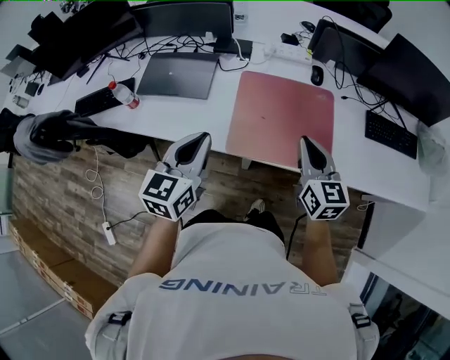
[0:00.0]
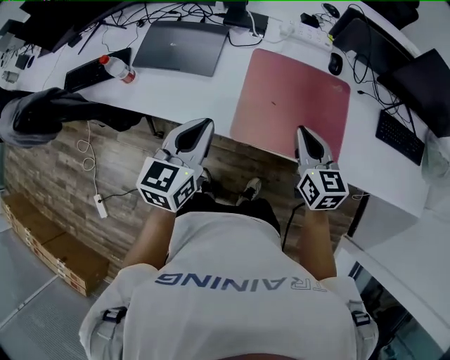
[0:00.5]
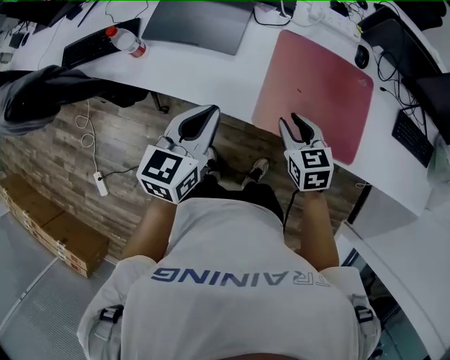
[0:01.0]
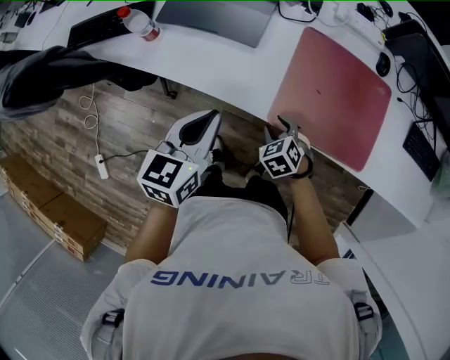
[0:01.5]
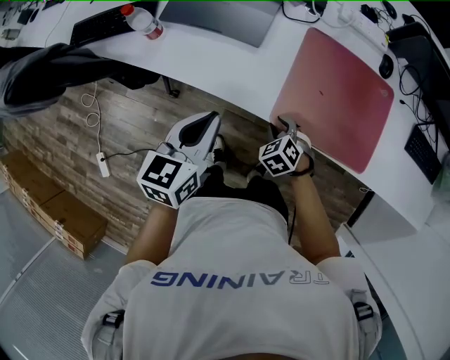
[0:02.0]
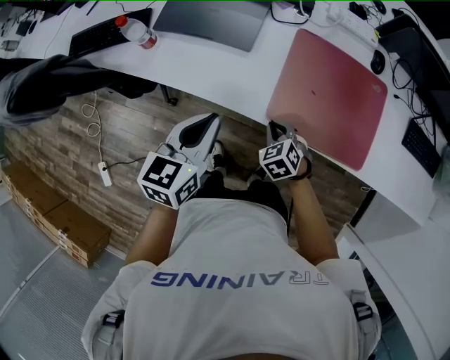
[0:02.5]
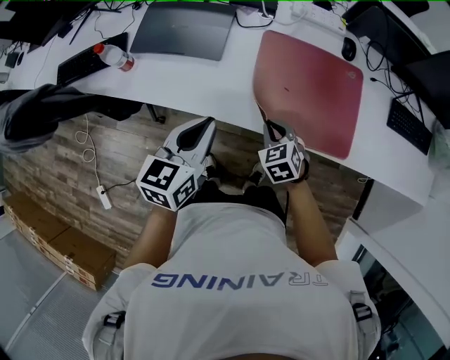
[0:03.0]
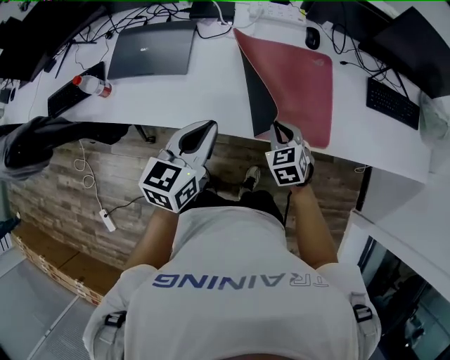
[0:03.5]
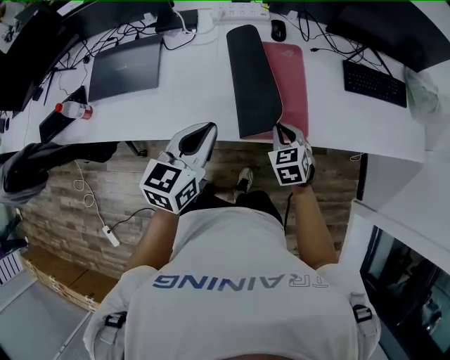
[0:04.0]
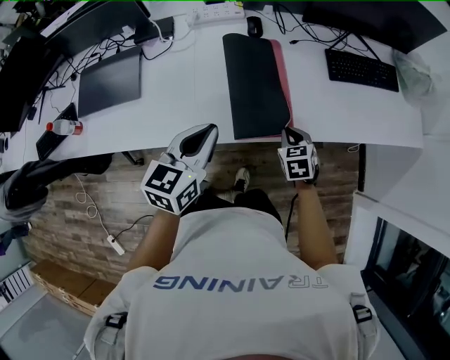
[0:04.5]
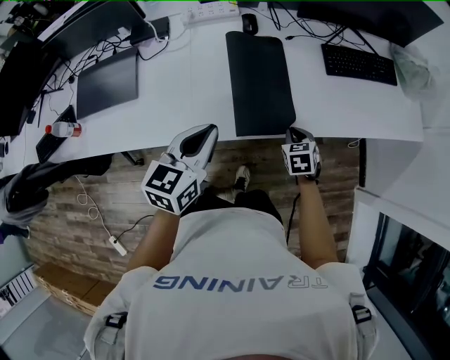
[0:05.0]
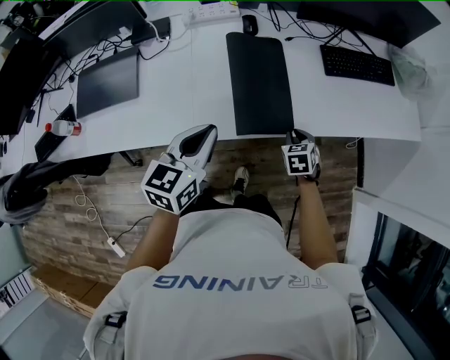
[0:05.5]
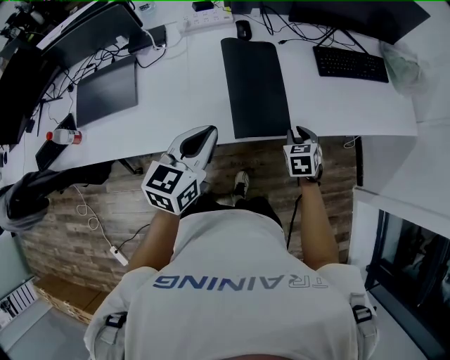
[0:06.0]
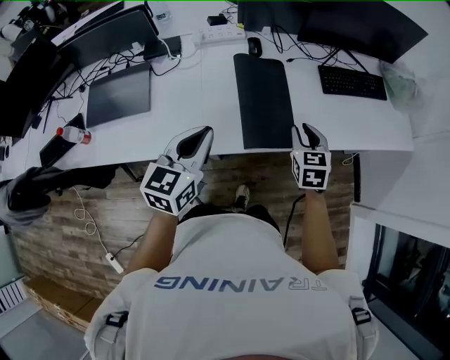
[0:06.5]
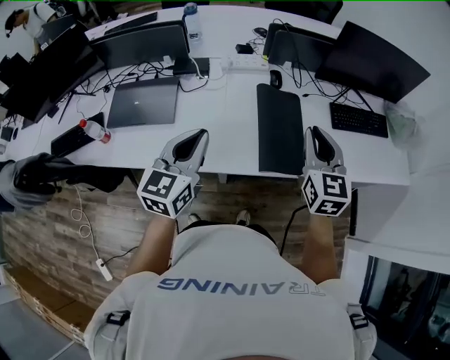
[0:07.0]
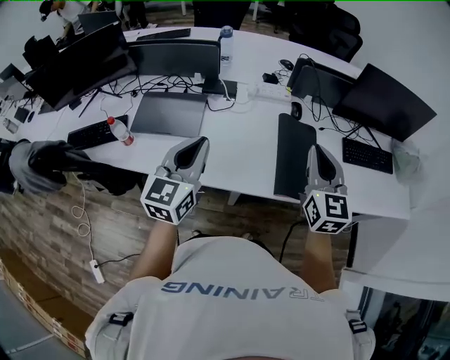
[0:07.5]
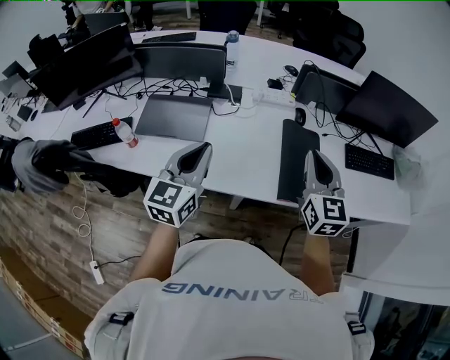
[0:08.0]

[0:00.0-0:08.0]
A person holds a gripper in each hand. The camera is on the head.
0:00.0 to 0:02.0: The right gripper is displaced downward and to the left by about 35 cm, angles its fingers downward, by some 50 degrees, and opens; the left gripper moves to the left and downward, about 15 cm.
0:02.0 to 0:04.0: Both grippers move to the right, some 25 cm. The right gripper rotates roughly 40 degrees, and closes. Meanwhile the left gripper turns by approximately 20 degrees.
0:04.0 to 0:06.0: The right gripper heads to the right, covering about 15 cm. Meanwhile the left gripper goes roughly 10 cm to the right.
0:06.0 to 0:08.0: The right gripper shifts some 40 cm upward and to the left, and points its fingers about 40 degrees further upward. The left gripper is displaced to the left and upward by approximately 25 cm, and rotates approximately 30 degrees.

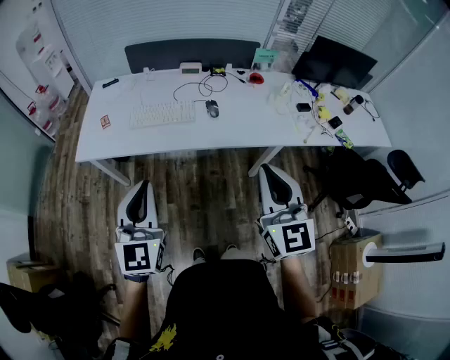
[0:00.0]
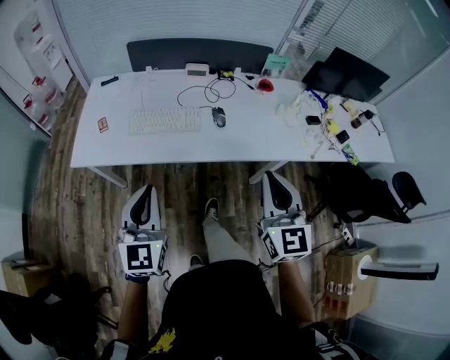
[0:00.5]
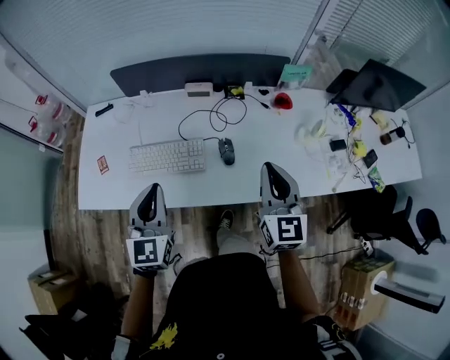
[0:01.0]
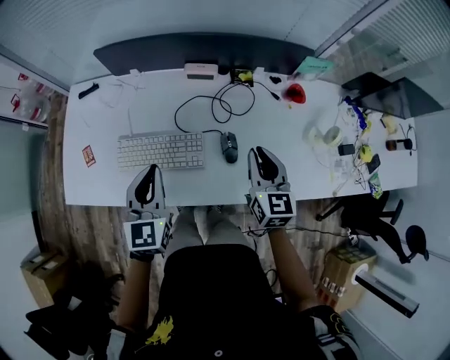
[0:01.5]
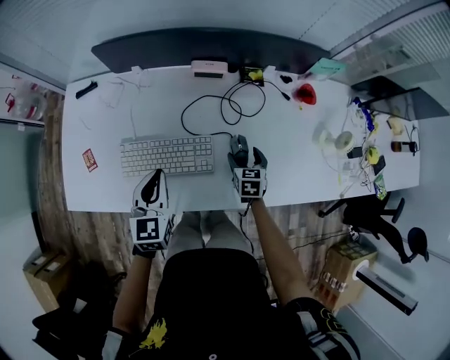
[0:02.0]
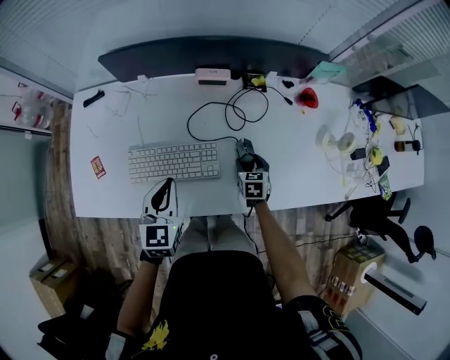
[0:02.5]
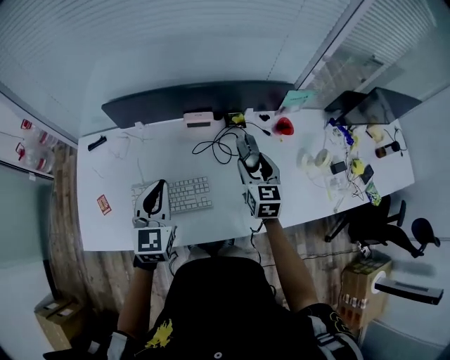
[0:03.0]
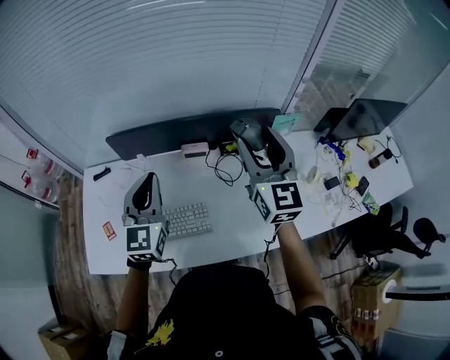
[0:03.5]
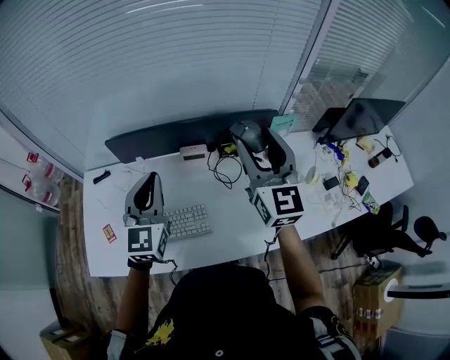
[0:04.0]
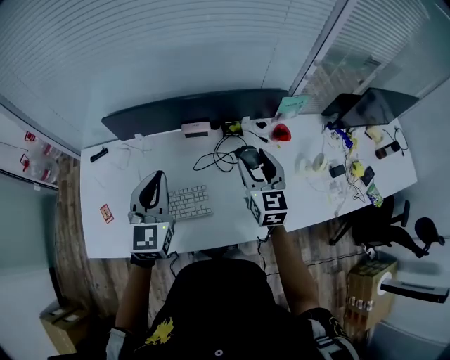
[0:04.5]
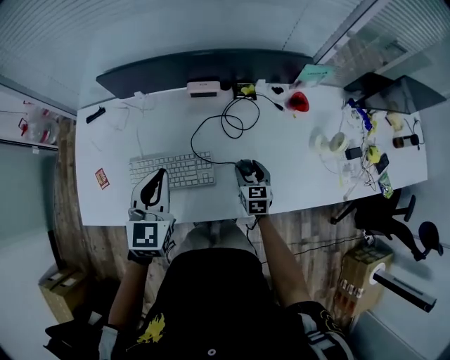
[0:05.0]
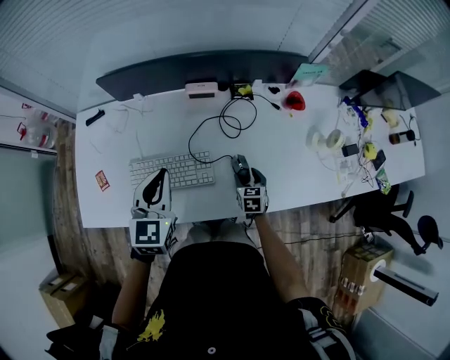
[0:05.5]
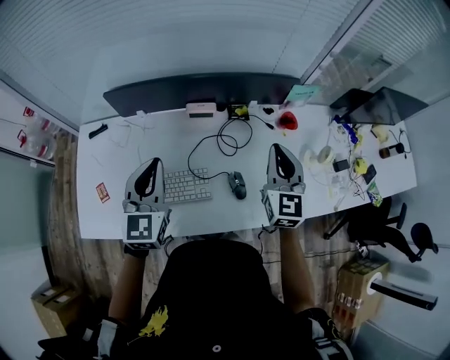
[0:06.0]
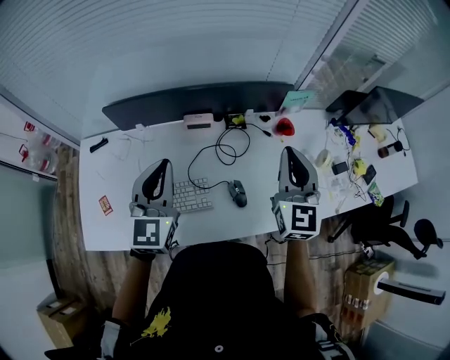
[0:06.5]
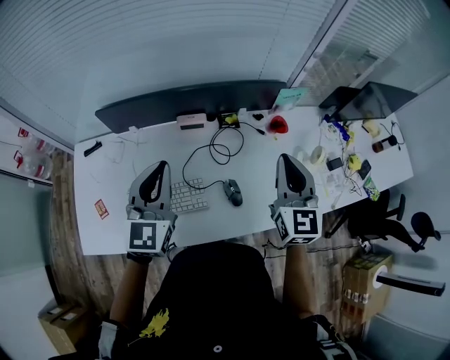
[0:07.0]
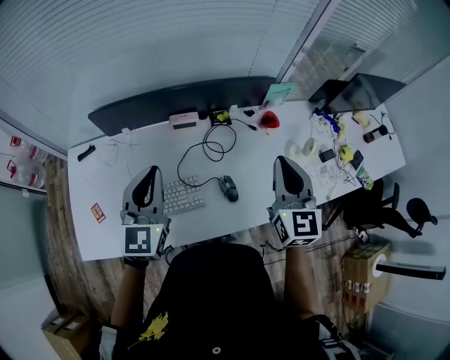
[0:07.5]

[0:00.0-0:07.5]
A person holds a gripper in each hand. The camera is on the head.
0:00.0 to 0:02.0: Both grippers are carried forward, some 60 cm. The left gripper shifts some 25 cm downward, and changes its angle by about 30 degrees, while the right gripper shifts some 50 cm downward, tips its fingers downward by approximately 50 degrees, and opens.
0:02.0 to 0:04.0: The left gripper heads upward, covering roughly 25 cm, and turns by roughly 30 degrees; the right gripper heads upward, covering approximately 50 cm, and points its fingers some 50 degrees further upward.
0:04.0 to 0:05.5: The right gripper moves downward, approximately 50 cm, and tips its fingers downward by about 50 degrees; the left gripper heads downward, covering some 15 cm, and turns by some 20 degrees.
0:05.5 to 0:07.5: The right gripper heads upward, covering roughly 40 cm, tilts its fingers roughly 40 degrees upward, and closes its fingers. The left gripper travels upward by about 10 cm.

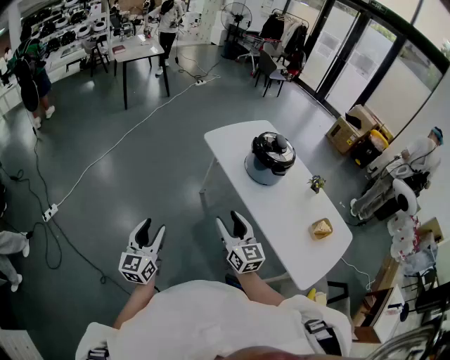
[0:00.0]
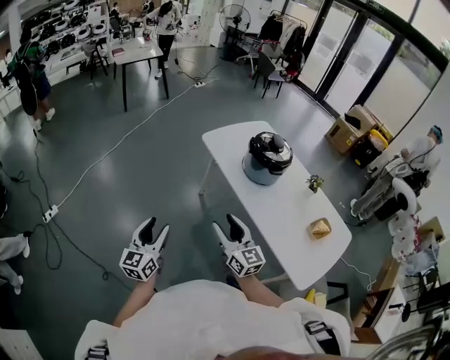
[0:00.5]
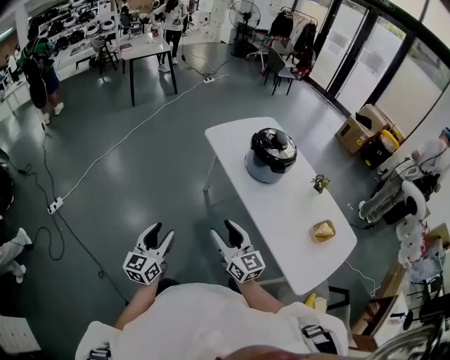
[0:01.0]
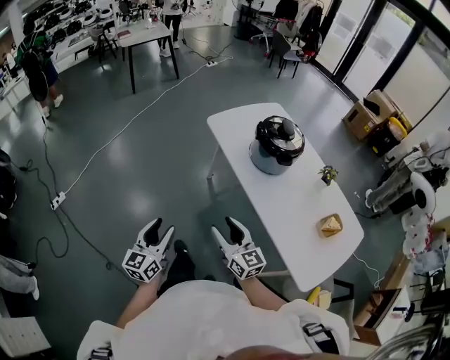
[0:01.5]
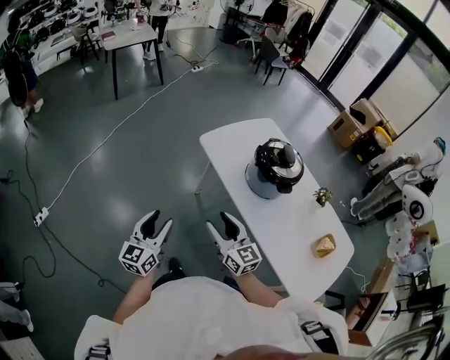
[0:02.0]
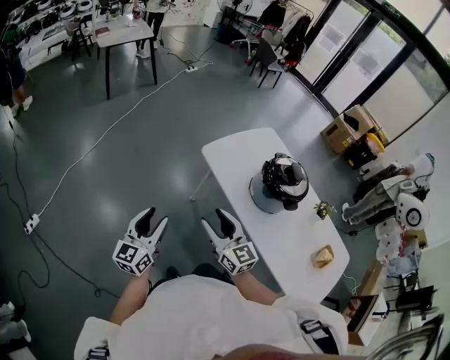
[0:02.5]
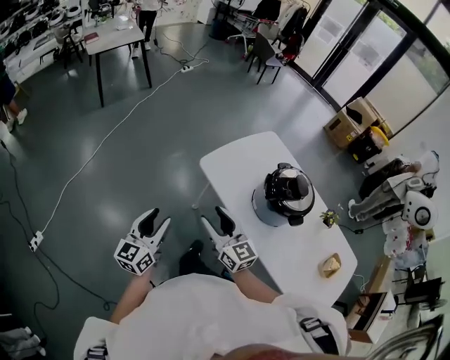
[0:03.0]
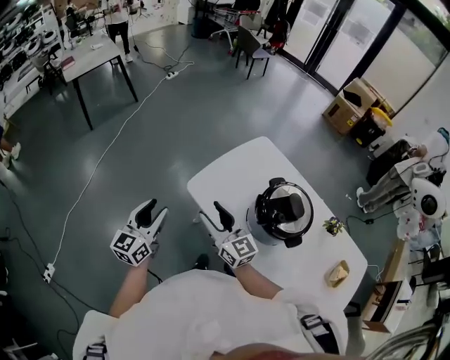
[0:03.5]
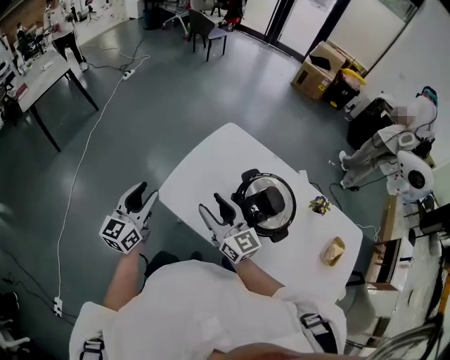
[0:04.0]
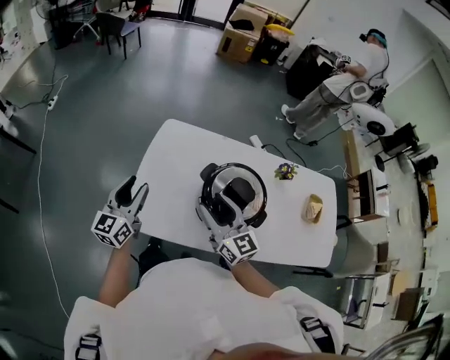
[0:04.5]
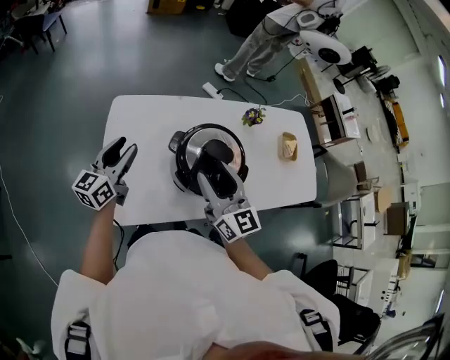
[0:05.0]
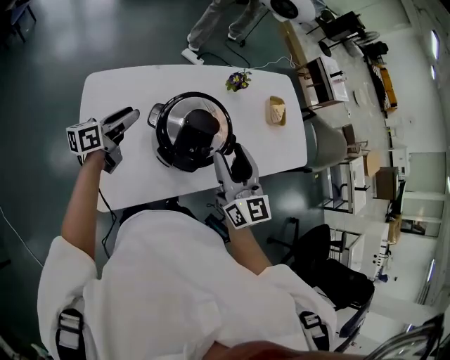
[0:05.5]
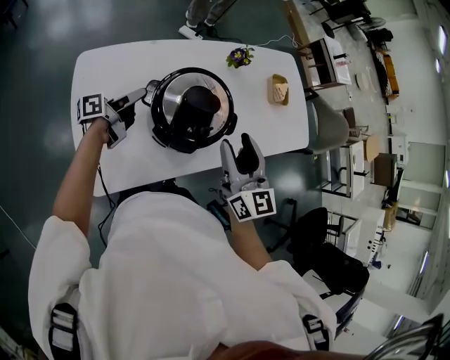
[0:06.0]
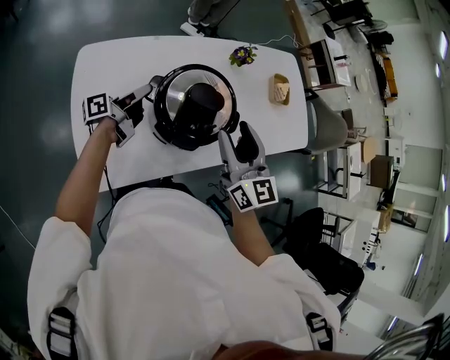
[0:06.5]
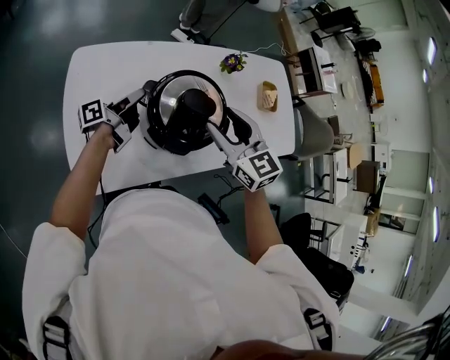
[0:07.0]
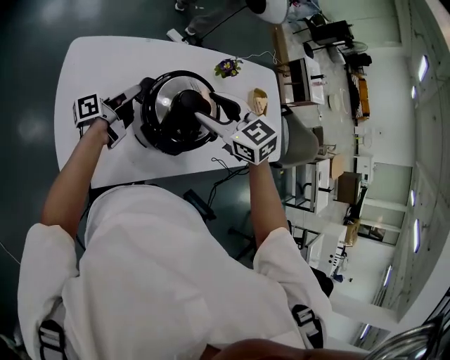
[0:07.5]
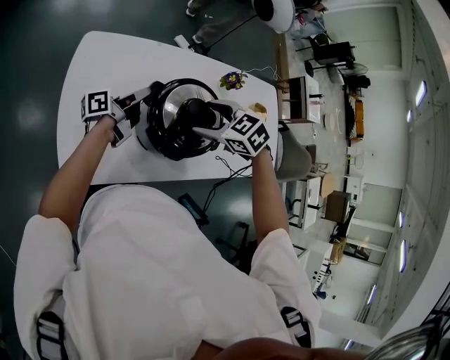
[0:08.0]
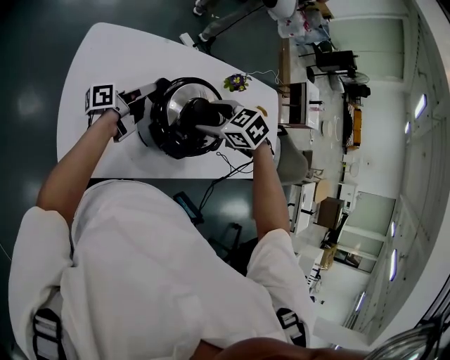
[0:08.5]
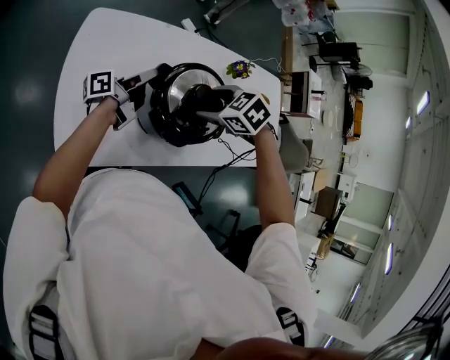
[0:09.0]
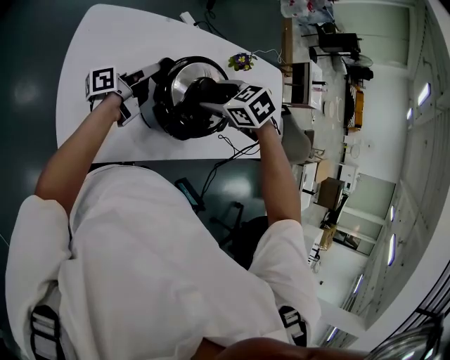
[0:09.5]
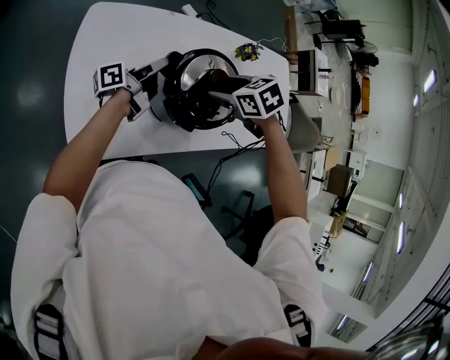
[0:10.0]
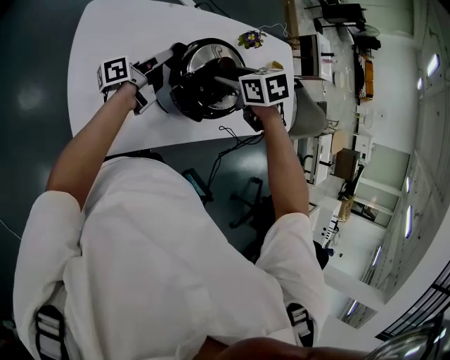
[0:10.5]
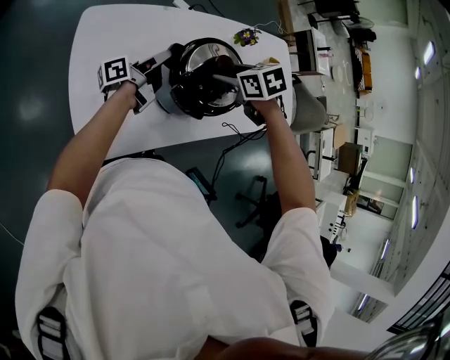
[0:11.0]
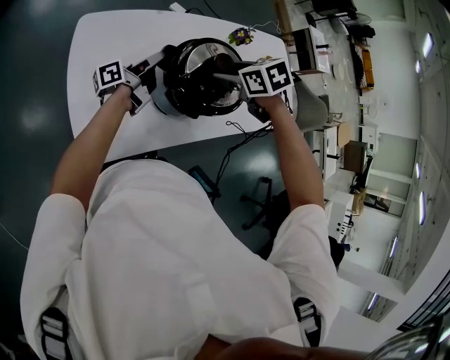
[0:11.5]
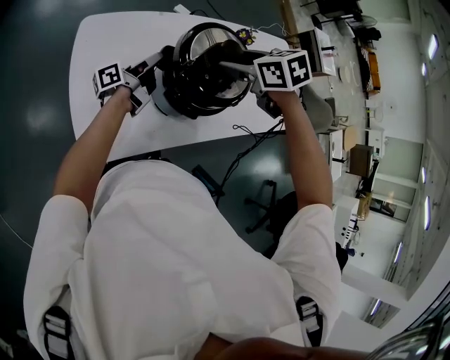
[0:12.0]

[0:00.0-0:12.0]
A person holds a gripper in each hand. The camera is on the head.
0:00.0 to 0:02.0: Both grippers move forward, some 15 cm.
0:02.0 to 0:04.0: The grippers both shift forward by approximately 40 cm. The left gripper swivels about 20 degrees; the right gripper rotates some 20 degrees.
0:04.0 to 0:06.0: The left gripper shifts by roughly 40 cm, and changes its angle by roughly 100 degrees. Meanwhile the right gripper shifts by approximately 20 cm, and changes its angle by roughly 70 degrees.
0:06.0 to 0:08.0: The right gripper changes place by some 15 cm, and tilts its fingers approximately 60 degrees downward; the left gripper closes.
0:08.0 to 0:10.0: The right gripper swivels about 20 degrees.
0:10.0 to 0:12.0: The right gripper moves upward, about 10 cm.
